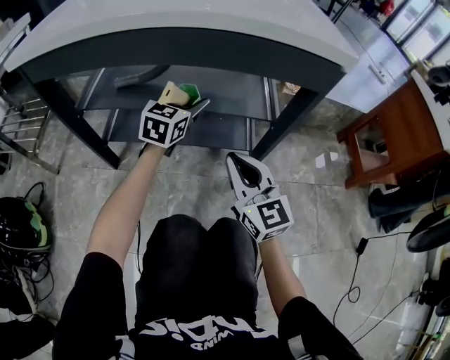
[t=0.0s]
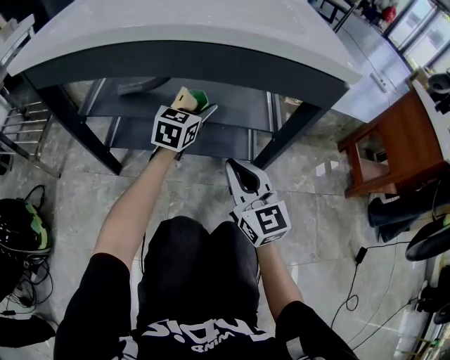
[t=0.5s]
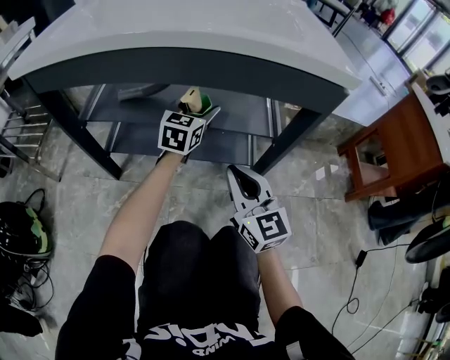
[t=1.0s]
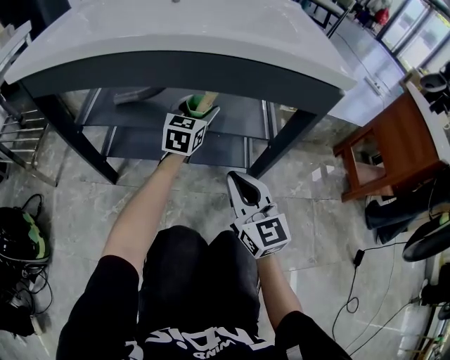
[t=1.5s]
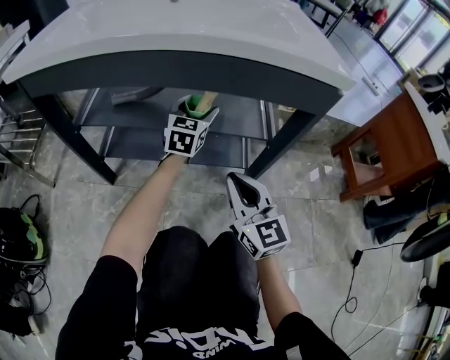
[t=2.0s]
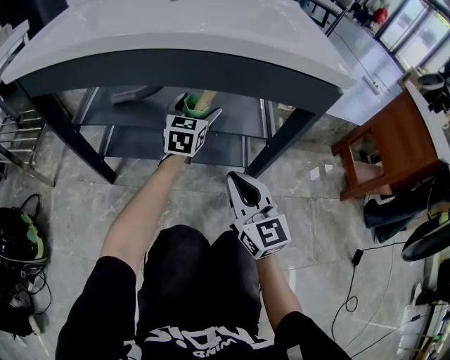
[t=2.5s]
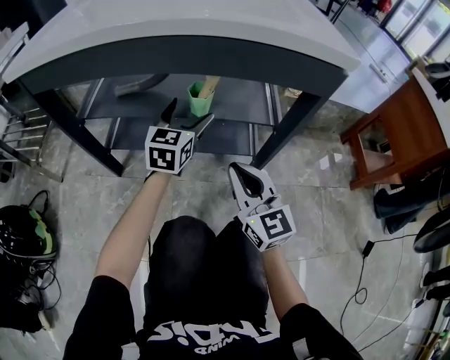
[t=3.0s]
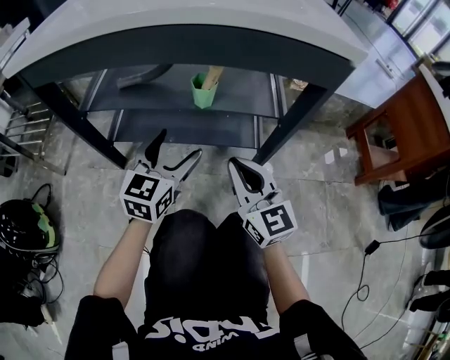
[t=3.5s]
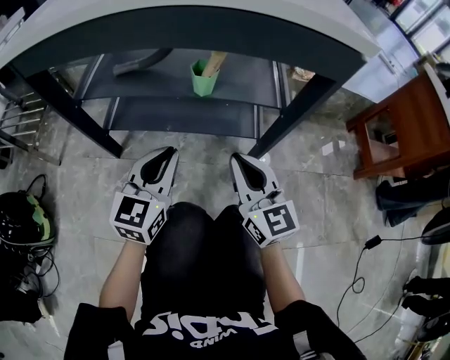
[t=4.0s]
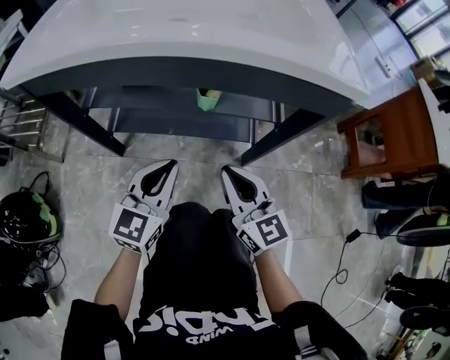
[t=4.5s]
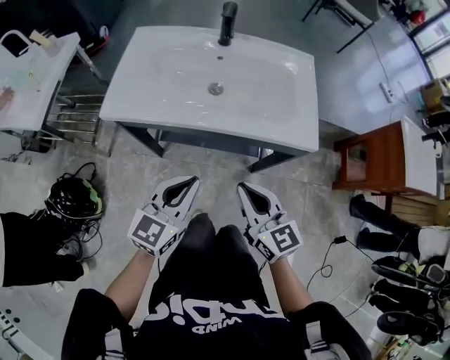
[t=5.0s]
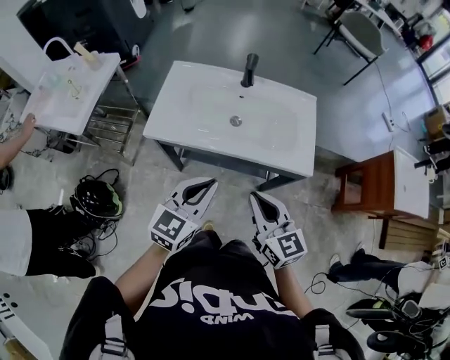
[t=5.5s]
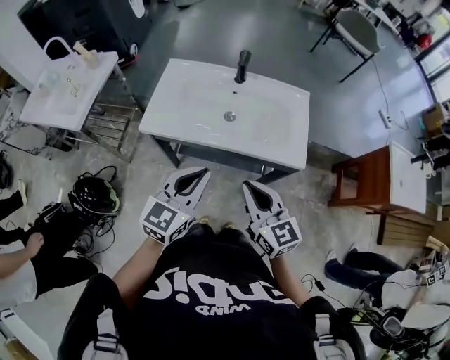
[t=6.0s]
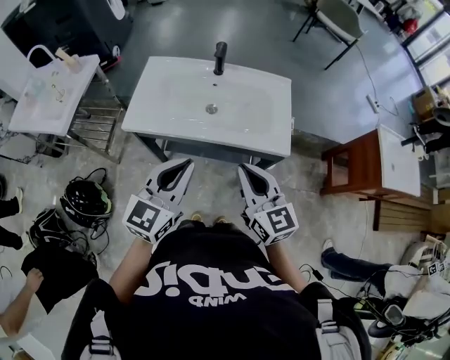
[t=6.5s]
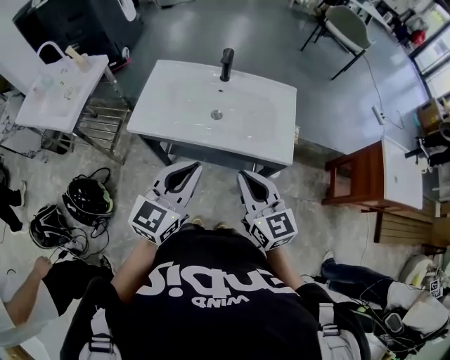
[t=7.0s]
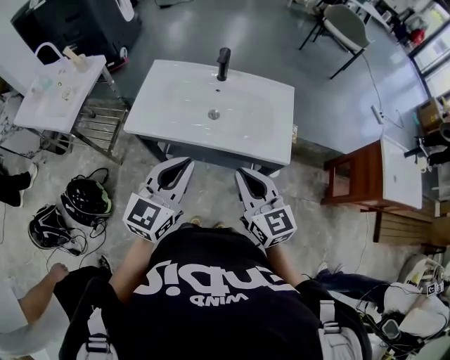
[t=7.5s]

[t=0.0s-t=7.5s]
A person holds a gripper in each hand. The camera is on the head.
t=0.0s to t=2.0s: The left gripper is displaced forward by some 5 cm.
t=2.0s to t=4.0s: The left gripper moves backward, roughly 25 cm, and closes up.
t=4.0s to t=5.5s: Both grippers move upward, approximately 50 cm.
t=5.5s to t=7.5s: The right gripper ends up about 5 cm from where it was; the left gripper travels upward by roughly 5 cm.

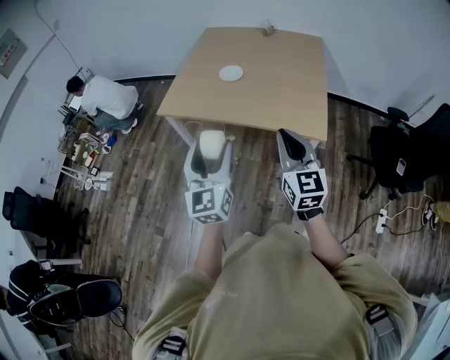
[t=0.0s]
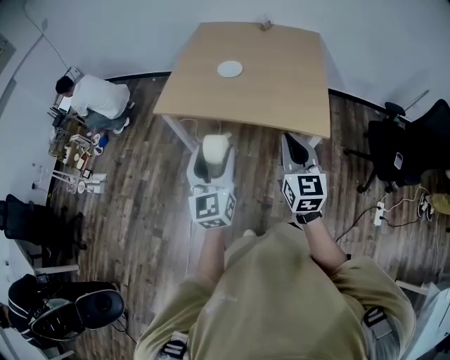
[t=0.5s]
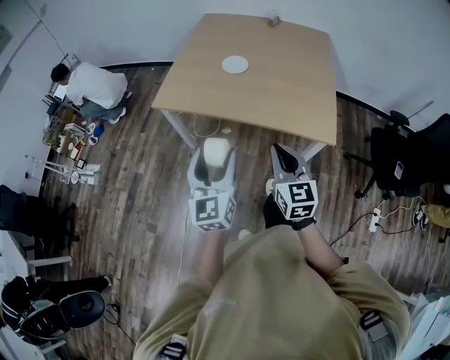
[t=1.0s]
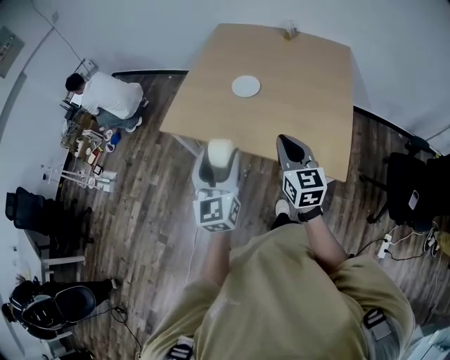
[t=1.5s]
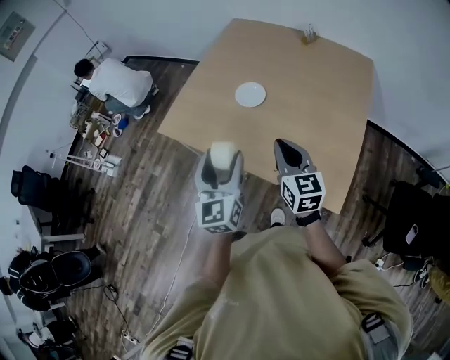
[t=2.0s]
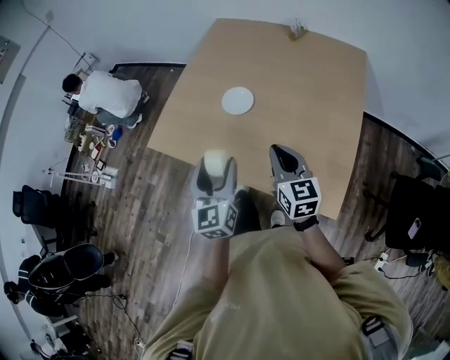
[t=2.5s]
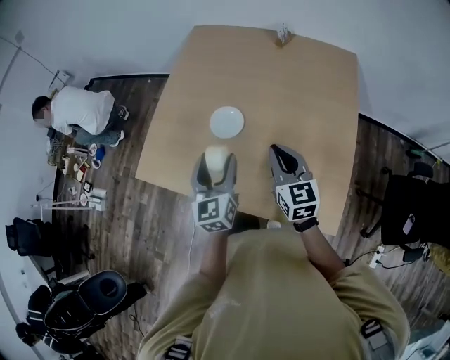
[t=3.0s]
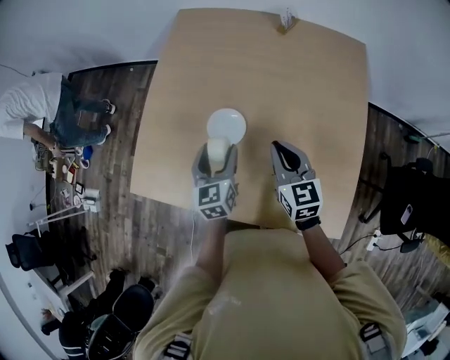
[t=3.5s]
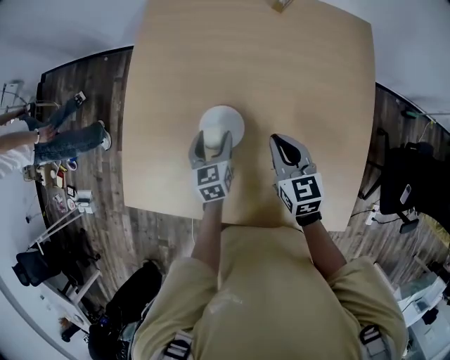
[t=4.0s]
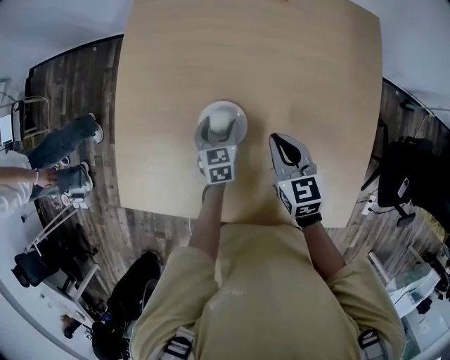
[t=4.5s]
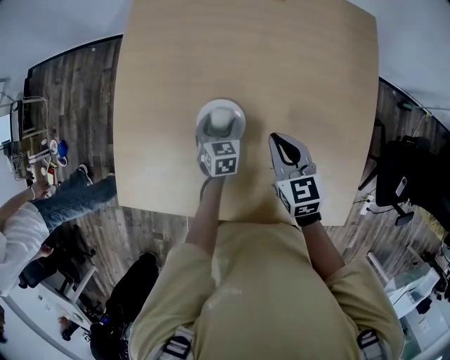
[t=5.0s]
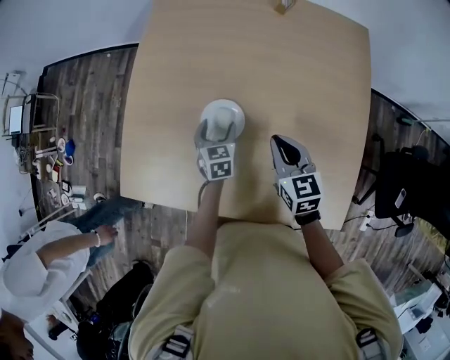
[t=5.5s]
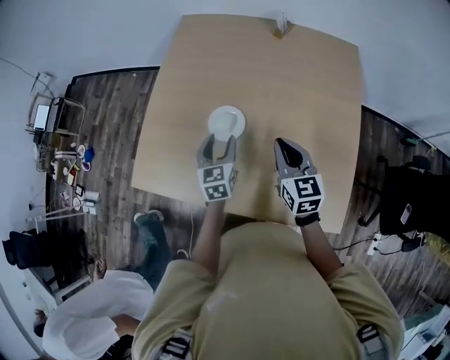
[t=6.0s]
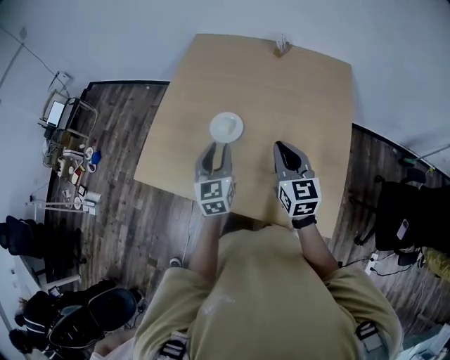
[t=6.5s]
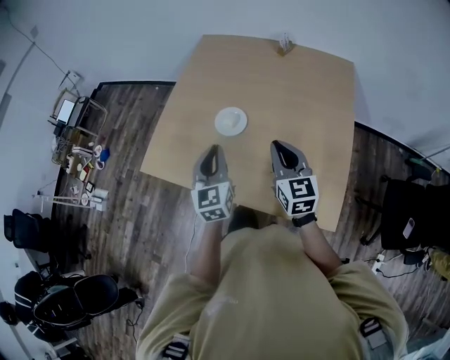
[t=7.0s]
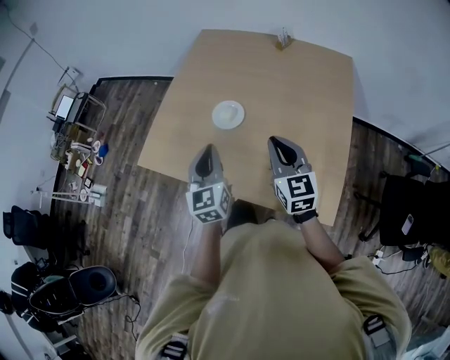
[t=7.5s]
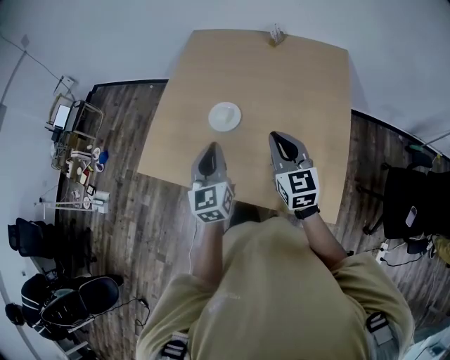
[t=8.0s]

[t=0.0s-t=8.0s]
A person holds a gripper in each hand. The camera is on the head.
t=0.0s to t=2.0s: The grippers both shift forward by approximately 35 cm. The right gripper changes its angle by roughly 20 degrees.
t=2.0s to t=4.0s: Both grippers travel together forward and downward, roughly 40 cm. The left gripper points its fingers approximately 30 degrees further downward; the right gripper turns by roughly 20 degrees.
t=4.0s to t=6.0s: Both grippers travel together backward and upward, roughly 15 cm.
t=6.0s to t=8.0s: The left gripper goes some 20 cm backward and upward, and closes its fingers, while the right gripper heads backward and upward, covering roughly 15 cm.

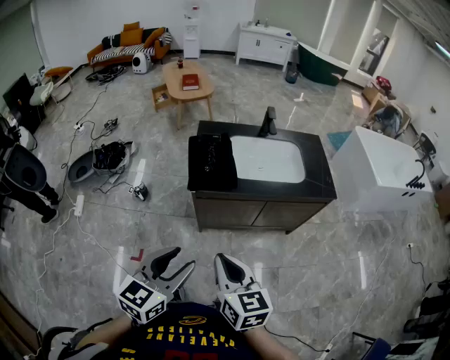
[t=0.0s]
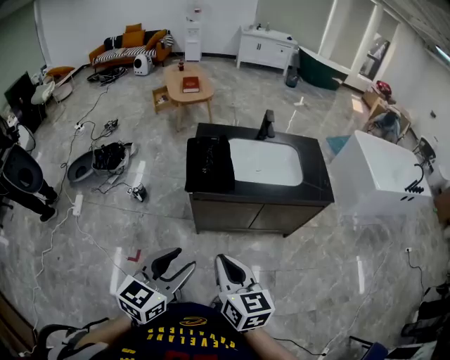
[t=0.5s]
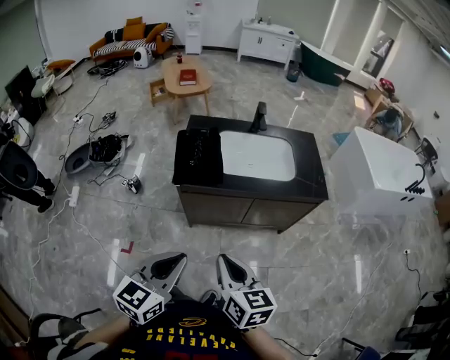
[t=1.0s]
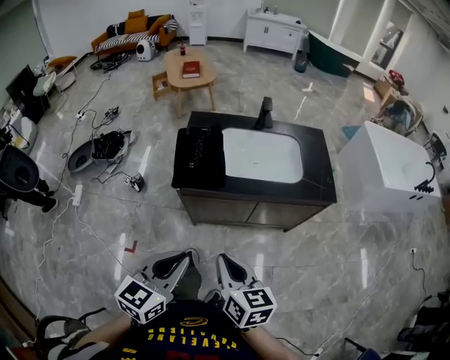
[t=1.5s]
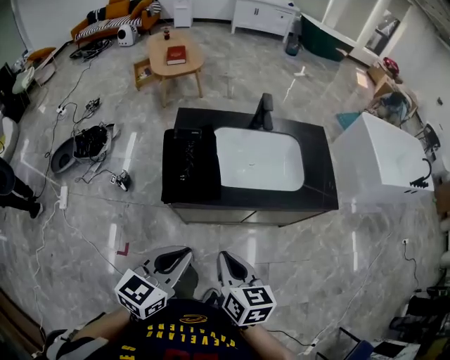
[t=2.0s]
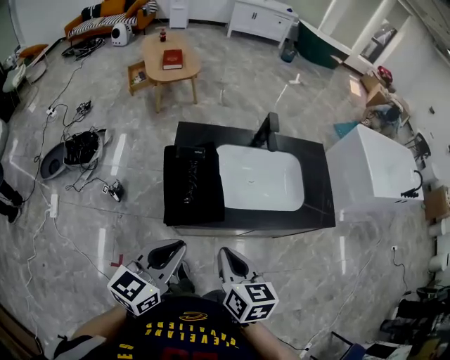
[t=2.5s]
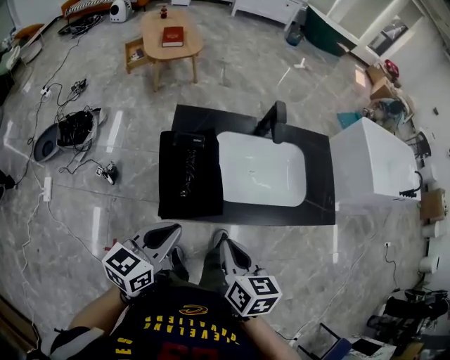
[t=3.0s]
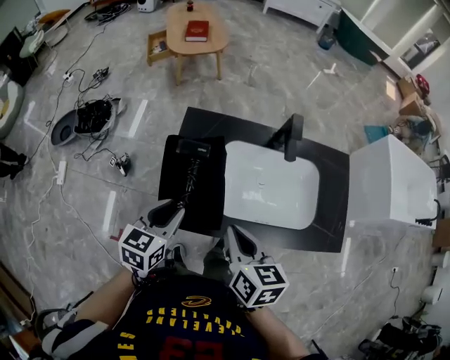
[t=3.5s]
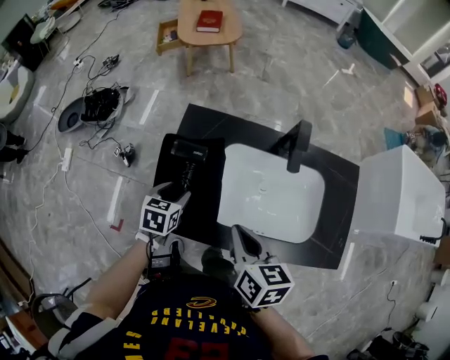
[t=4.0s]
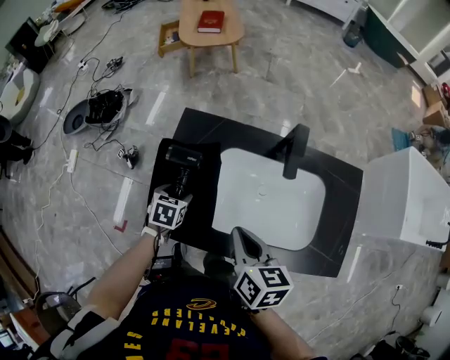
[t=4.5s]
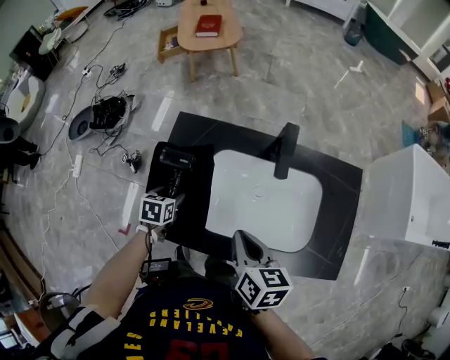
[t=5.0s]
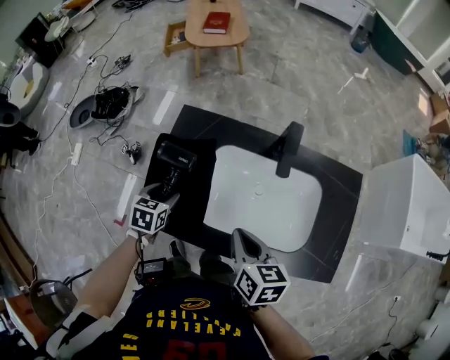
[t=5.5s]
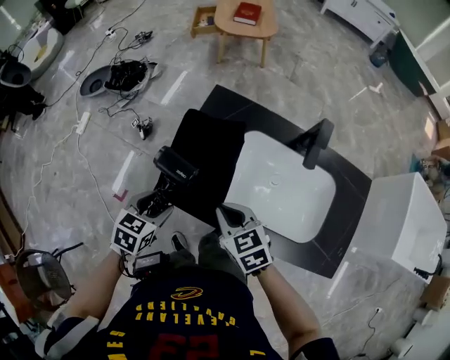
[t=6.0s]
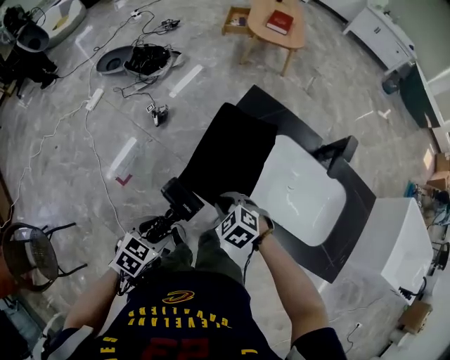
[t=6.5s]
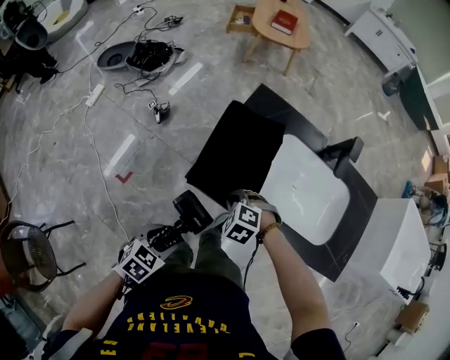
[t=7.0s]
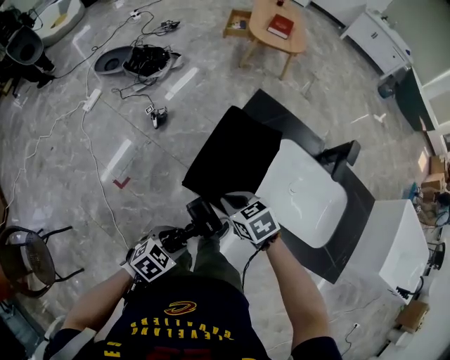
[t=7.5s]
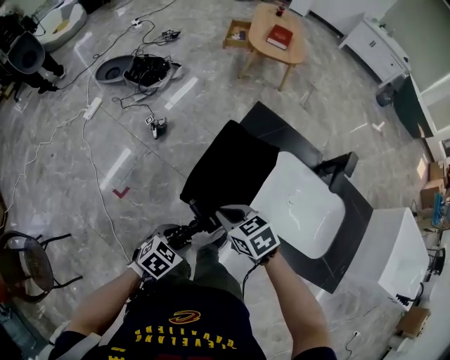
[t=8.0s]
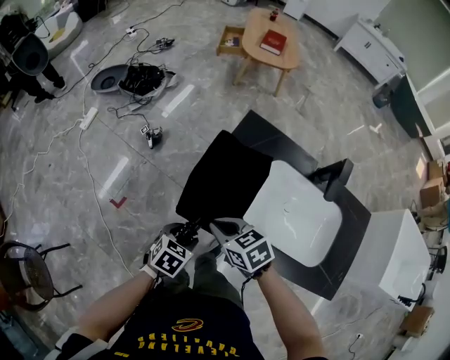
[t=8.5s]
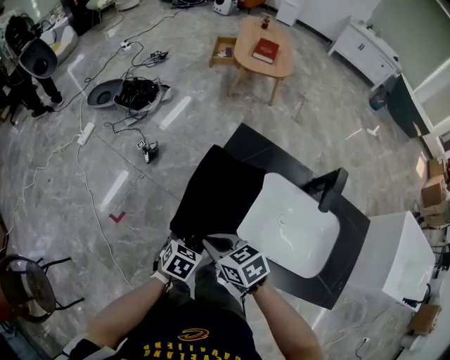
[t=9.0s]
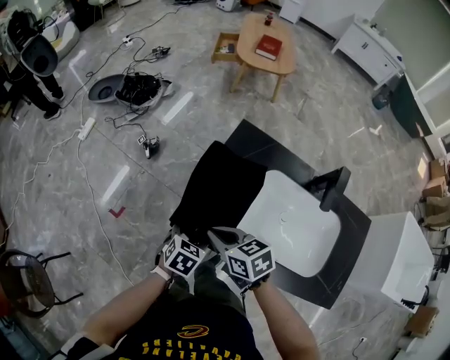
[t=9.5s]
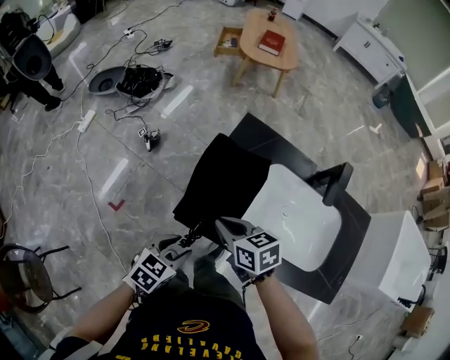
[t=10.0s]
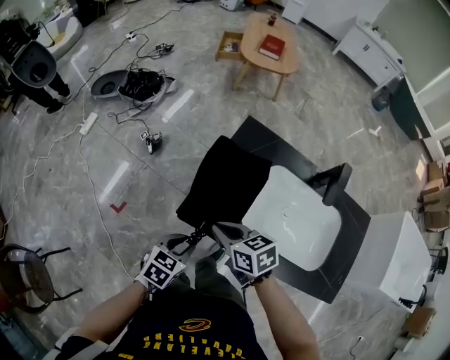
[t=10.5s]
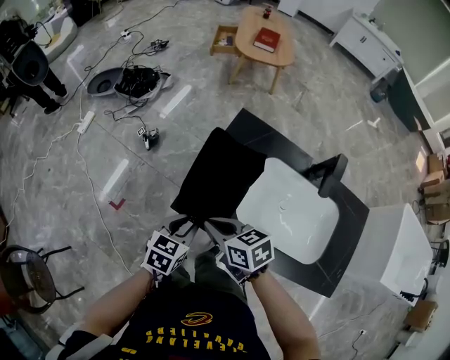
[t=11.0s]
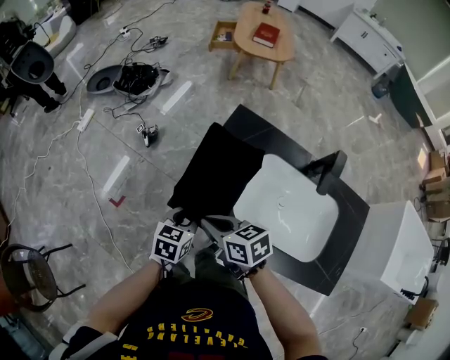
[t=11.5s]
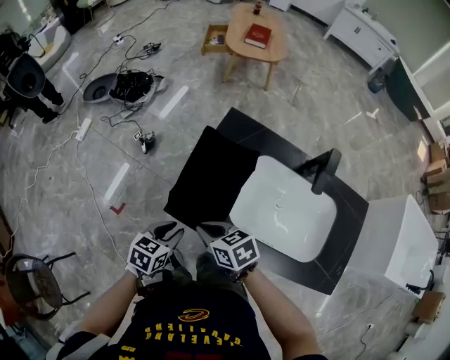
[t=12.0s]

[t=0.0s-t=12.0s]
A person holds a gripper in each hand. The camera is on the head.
t=0.0s to t=2.0s: The left gripper is displaced forward by approximately 20 cm, and closes. Meanwhile the right gripper travels forward, downward and to the right by about 20 cm.
t=2.0s to t=4.0s: The right gripper moves forward, roughly 30 cm. Meanwhile the left gripper is displaced forward and downward by approximately 40 cm, tips its fingers downward by roughly 30 degrees, and opens.
t=4.0s to t=6.0s: The left gripper travels backward and to the left by some 15 cm; the right gripper is displaced downward and to the left by about 10 cm, and turns by about 50 degrees.
t=6.0s to t=8.0s: The left gripper ends up approximately 15 cm from where it was. Meanwhile the right gripper goes downward and returns, roughly 10 cm each way.
t=8.0s to t=10.0s: The right gripper changes its angle by roughly 20 degrees.
